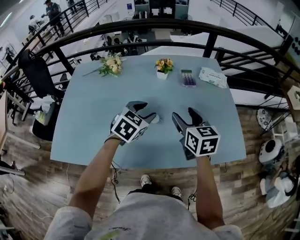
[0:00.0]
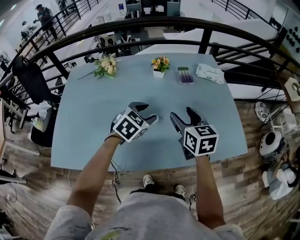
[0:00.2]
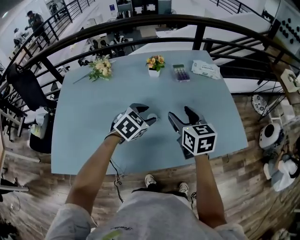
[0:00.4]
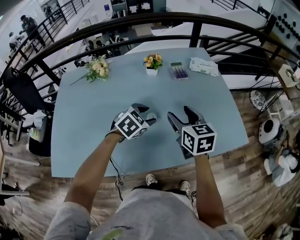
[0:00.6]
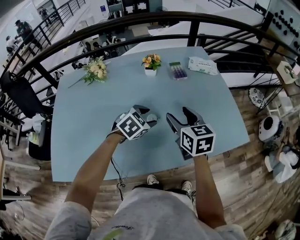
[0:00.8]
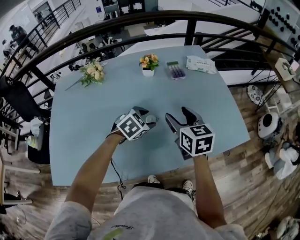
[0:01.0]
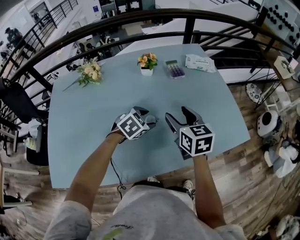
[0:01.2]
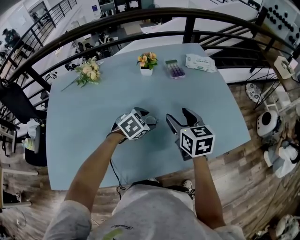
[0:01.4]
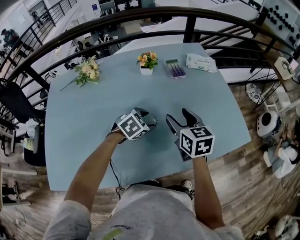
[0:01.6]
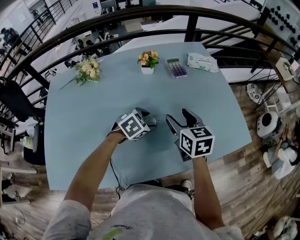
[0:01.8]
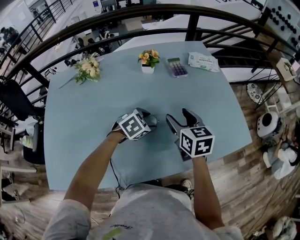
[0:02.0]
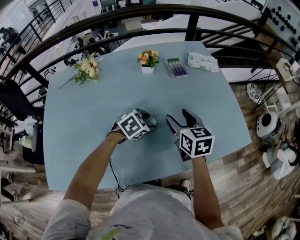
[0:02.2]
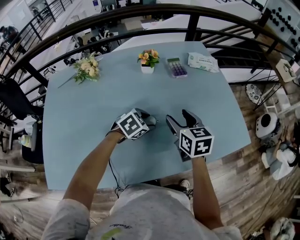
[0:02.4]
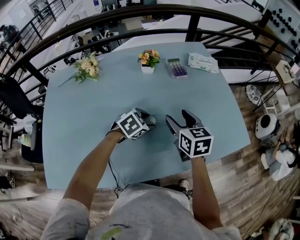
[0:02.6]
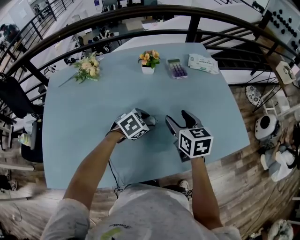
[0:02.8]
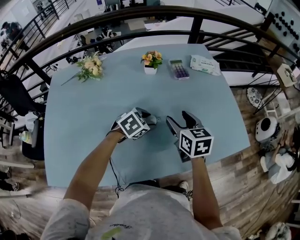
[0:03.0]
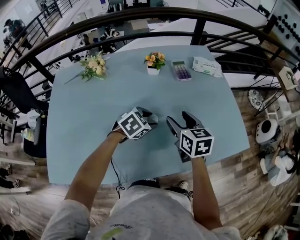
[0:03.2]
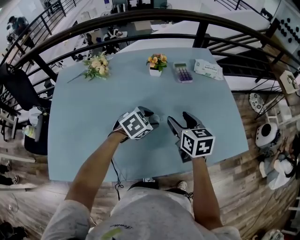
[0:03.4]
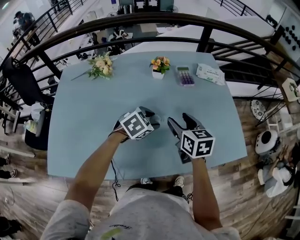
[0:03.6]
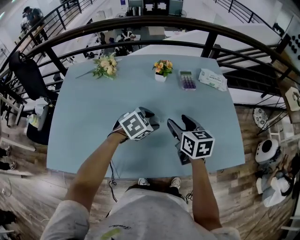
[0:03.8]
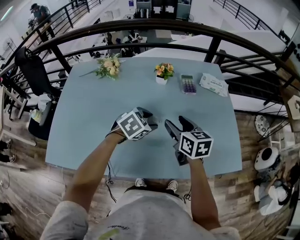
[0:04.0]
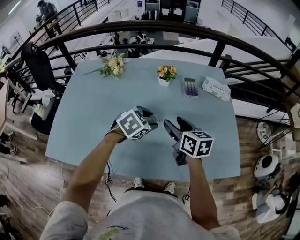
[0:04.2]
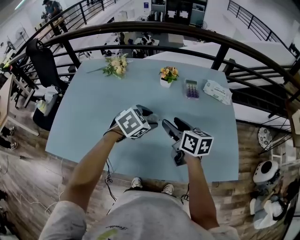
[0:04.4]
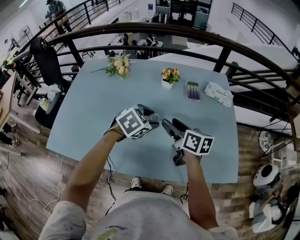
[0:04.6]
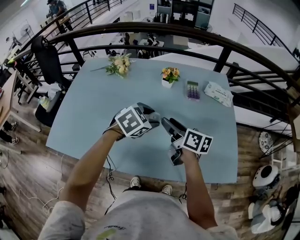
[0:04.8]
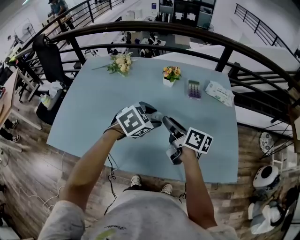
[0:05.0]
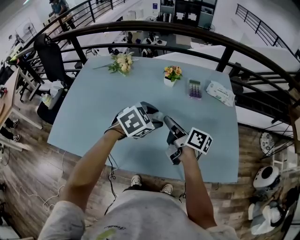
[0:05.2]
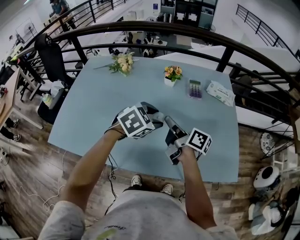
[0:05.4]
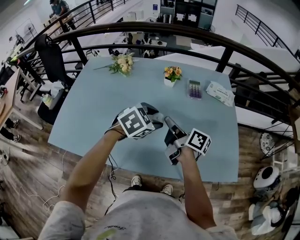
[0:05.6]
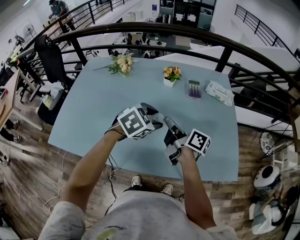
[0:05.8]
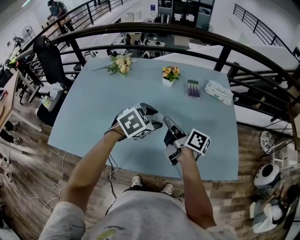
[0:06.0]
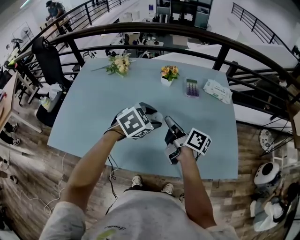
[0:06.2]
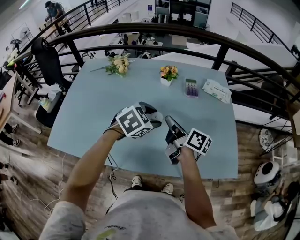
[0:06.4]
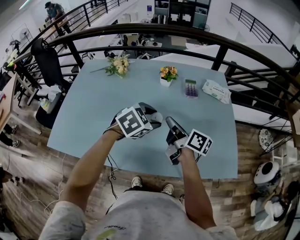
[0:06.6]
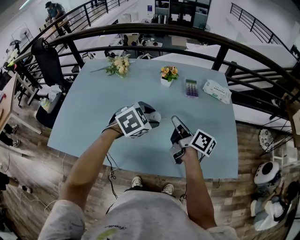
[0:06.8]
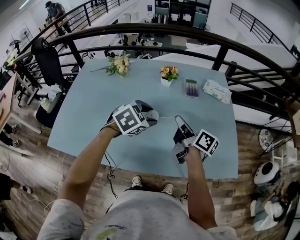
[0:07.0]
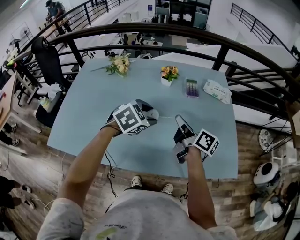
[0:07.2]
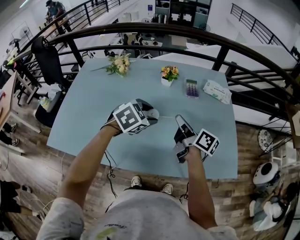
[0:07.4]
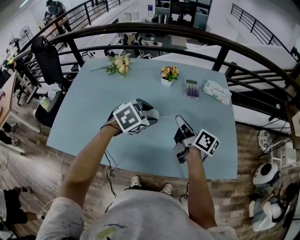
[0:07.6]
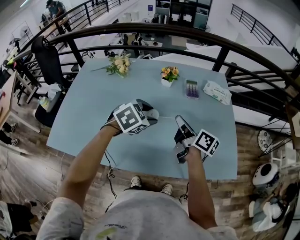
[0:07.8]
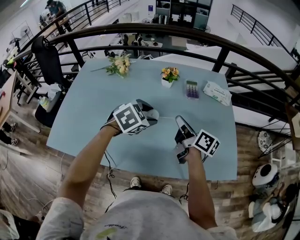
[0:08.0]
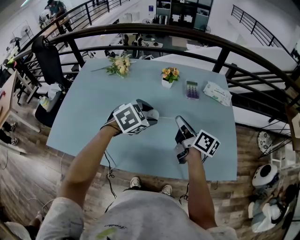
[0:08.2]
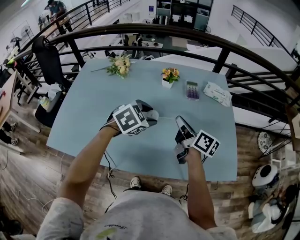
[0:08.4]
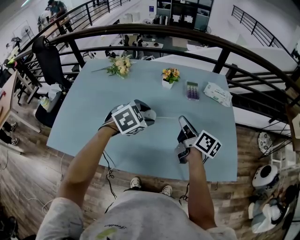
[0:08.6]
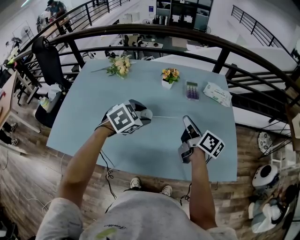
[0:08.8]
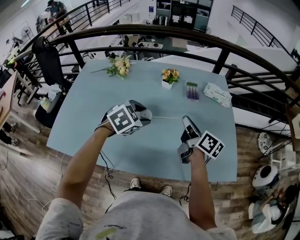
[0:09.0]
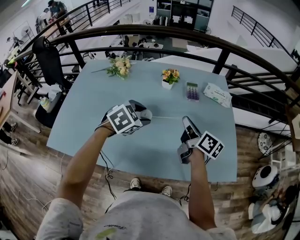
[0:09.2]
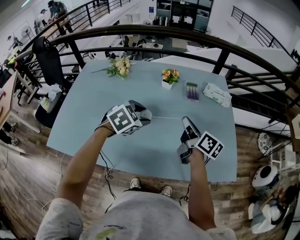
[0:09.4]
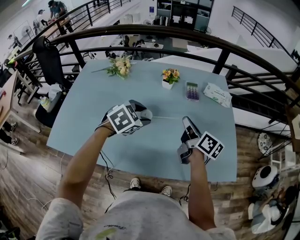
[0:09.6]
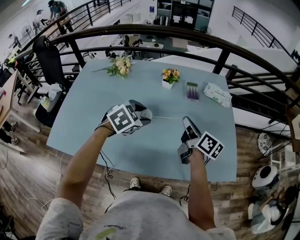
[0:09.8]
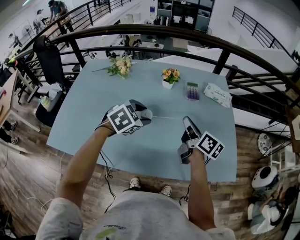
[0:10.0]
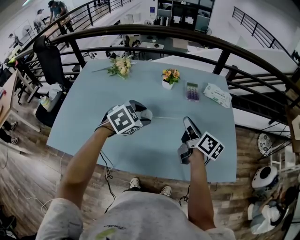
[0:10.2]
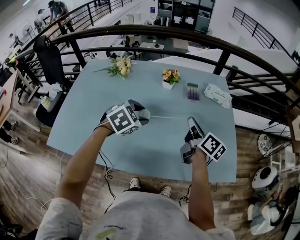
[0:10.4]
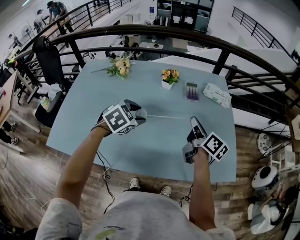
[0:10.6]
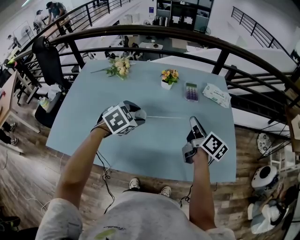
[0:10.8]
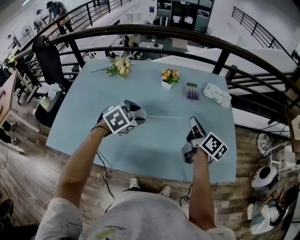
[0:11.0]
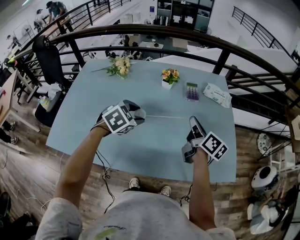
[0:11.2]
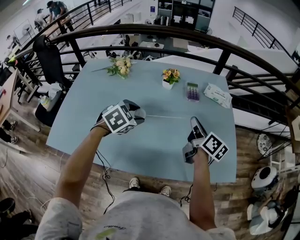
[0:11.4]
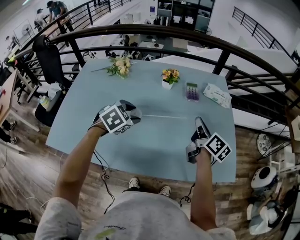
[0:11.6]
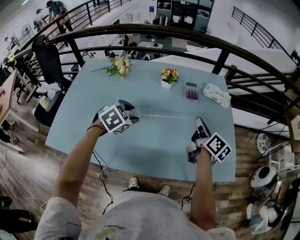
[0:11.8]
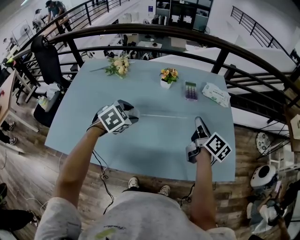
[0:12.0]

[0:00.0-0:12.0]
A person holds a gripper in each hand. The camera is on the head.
0:00.0 to 0:01.6: The right gripper shifts roughly 5 cm downward. Meanwhile the left gripper goes roughly 15 cm downward, and changes its angle by approximately 30 degrees.
0:01.6 to 0:03.0: The grippers move only a little.
0:03.0 to 0:04.4: The right gripper turns by about 30 degrees. The left gripper goes some 10 cm upward.
0:04.4 to 0:06.0: The left gripper moves approximately 5 cm; the right gripper turns by some 40 degrees, and closes.
0:06.0 to 0:07.6: The grippers make only small movements.
0:07.6 to 0:10.4: The grippers move only a little.
0:10.4 to 0:12.0: The grippers stay close to where they were, moving slightly.

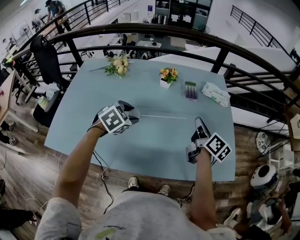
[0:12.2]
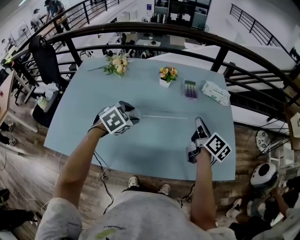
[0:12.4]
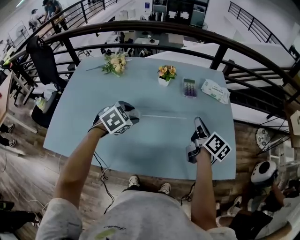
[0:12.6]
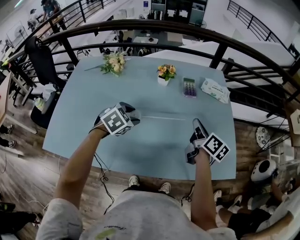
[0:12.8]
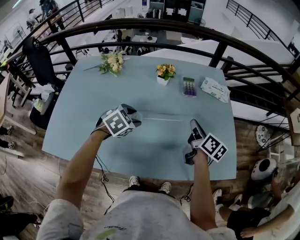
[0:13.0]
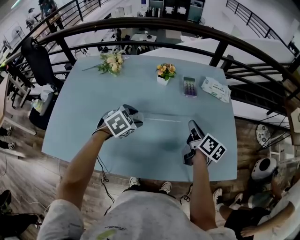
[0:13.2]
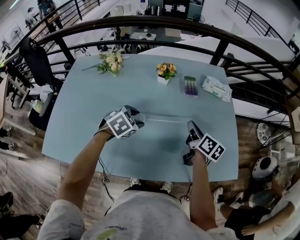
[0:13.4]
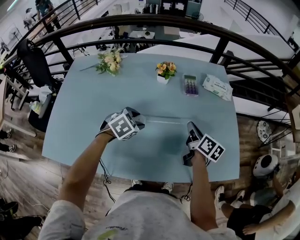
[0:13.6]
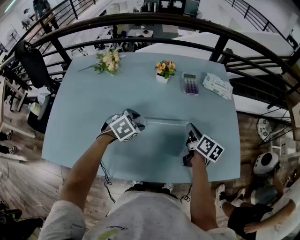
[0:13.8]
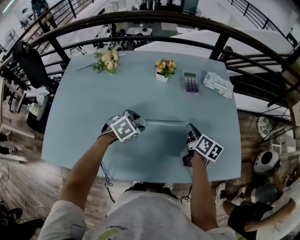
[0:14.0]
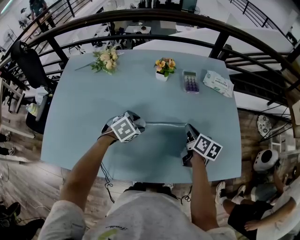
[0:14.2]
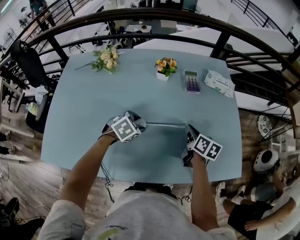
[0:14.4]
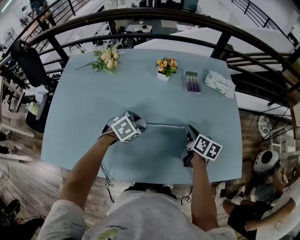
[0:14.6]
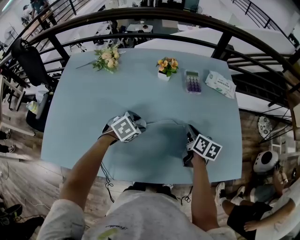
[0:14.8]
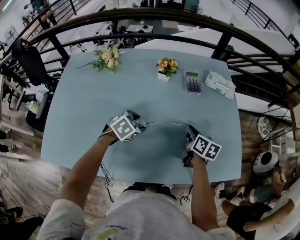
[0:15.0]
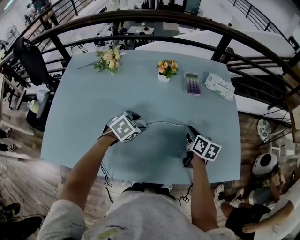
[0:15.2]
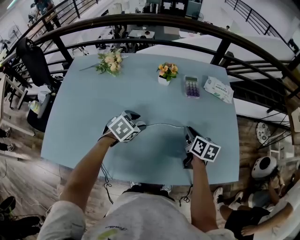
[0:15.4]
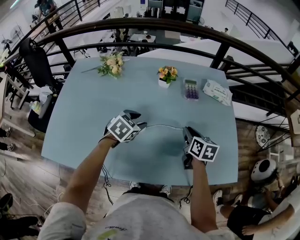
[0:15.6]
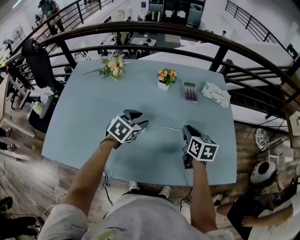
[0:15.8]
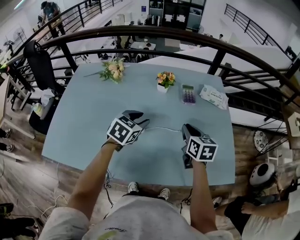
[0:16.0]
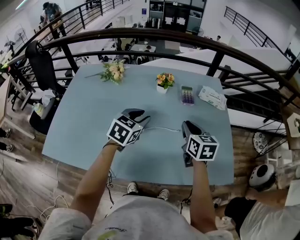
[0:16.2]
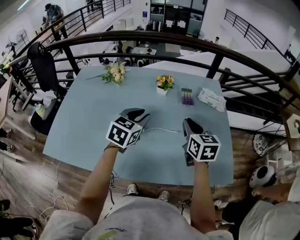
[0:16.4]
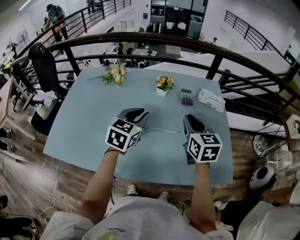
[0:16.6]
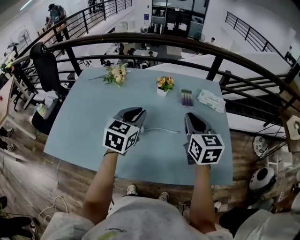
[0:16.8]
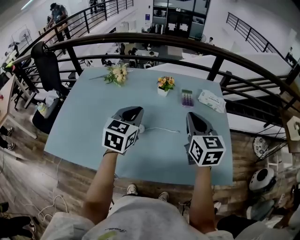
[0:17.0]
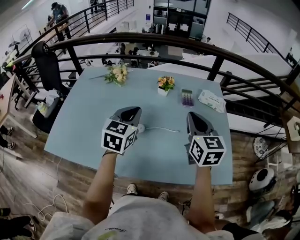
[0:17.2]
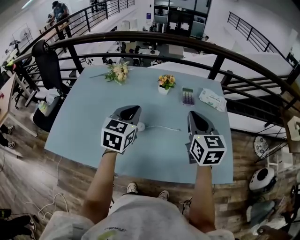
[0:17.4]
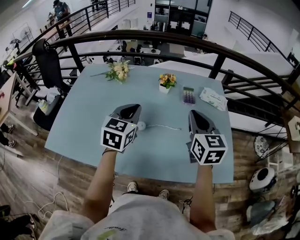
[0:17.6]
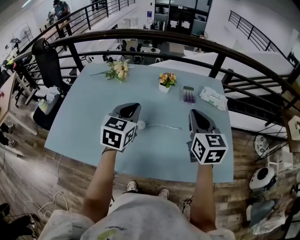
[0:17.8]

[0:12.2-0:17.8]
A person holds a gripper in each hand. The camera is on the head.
0:12.2 to 0:13.6: Both grippers travel together downward, about 5 cm.
0:13.6 to 0:15.0: The left gripper goes roughly 5 cm downward; the right gripper shifts by about 5 cm.
0:15.0 to 0:16.4: The grippers both shift upward by about 15 cm. The right gripper rotates approximately 30 degrees. The left gripper tips its fingers upward by some 30 degrees, and closes up.
0:16.4 to 0:17.8: The right gripper moves upward, approximately 5 cm. Meanwhile the left gripper ends up roughly 5 cm from where it was, and closes its fingers.

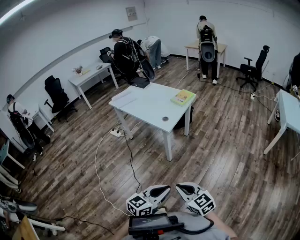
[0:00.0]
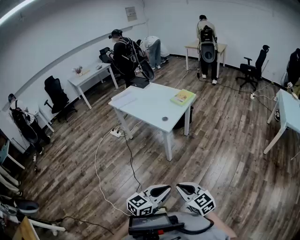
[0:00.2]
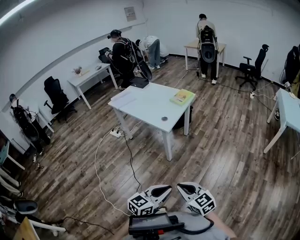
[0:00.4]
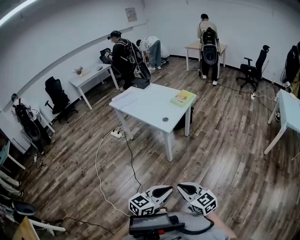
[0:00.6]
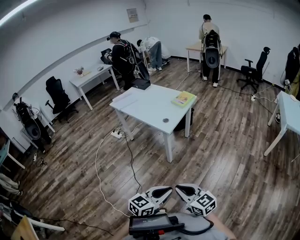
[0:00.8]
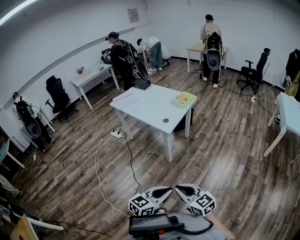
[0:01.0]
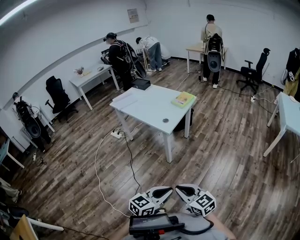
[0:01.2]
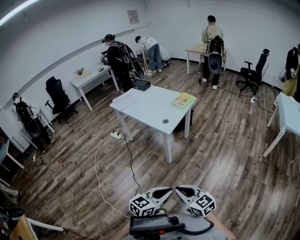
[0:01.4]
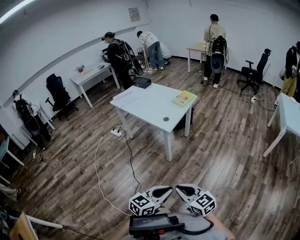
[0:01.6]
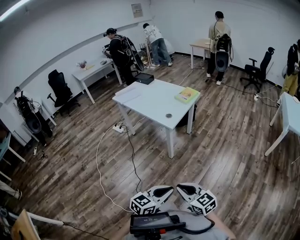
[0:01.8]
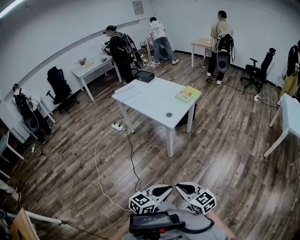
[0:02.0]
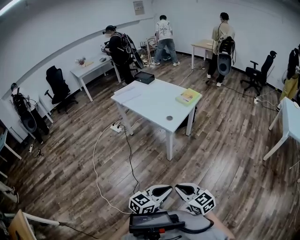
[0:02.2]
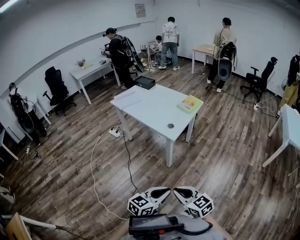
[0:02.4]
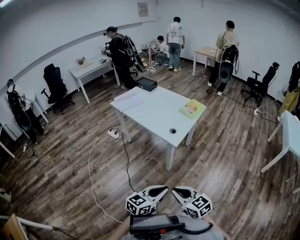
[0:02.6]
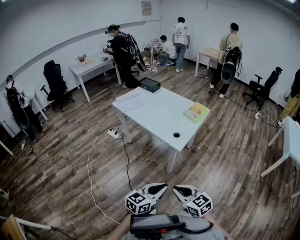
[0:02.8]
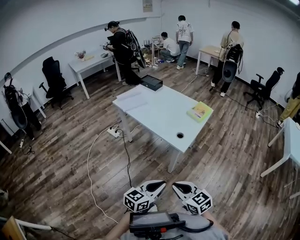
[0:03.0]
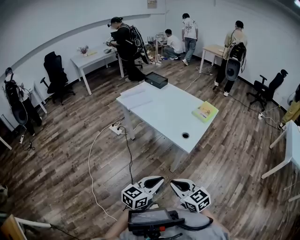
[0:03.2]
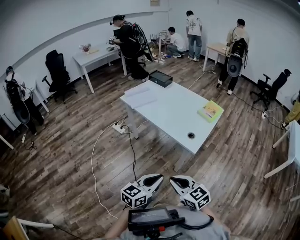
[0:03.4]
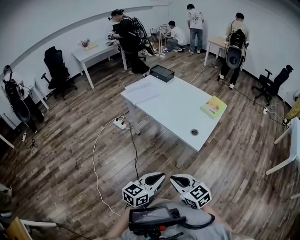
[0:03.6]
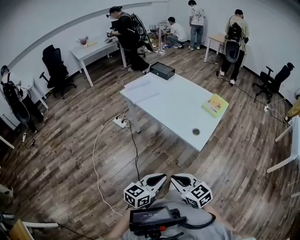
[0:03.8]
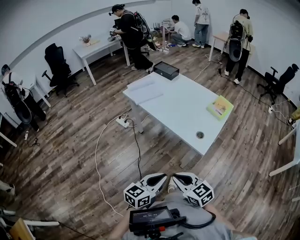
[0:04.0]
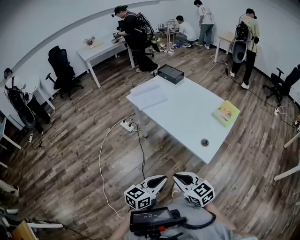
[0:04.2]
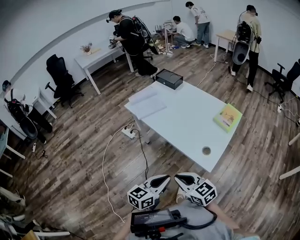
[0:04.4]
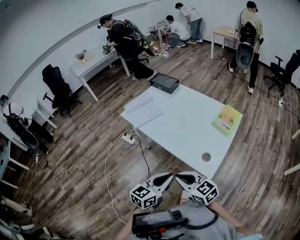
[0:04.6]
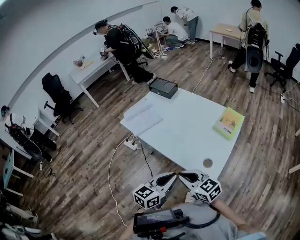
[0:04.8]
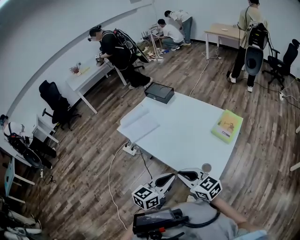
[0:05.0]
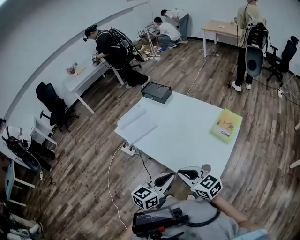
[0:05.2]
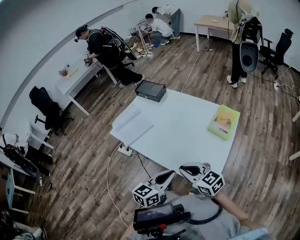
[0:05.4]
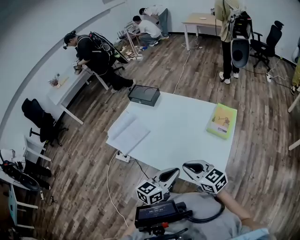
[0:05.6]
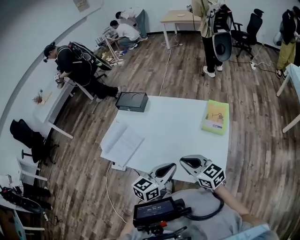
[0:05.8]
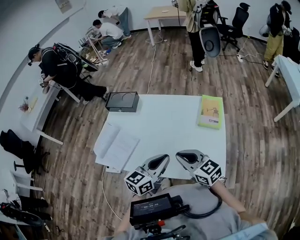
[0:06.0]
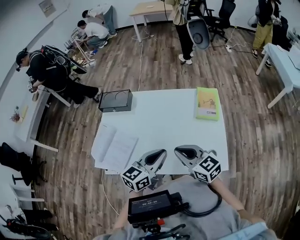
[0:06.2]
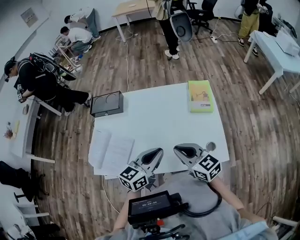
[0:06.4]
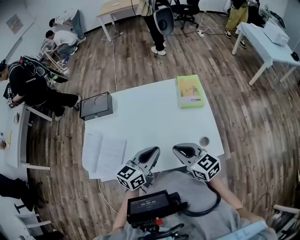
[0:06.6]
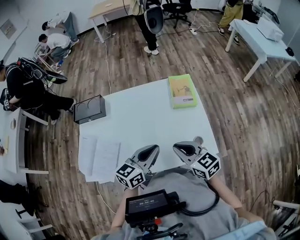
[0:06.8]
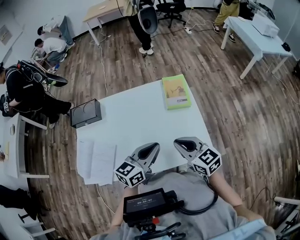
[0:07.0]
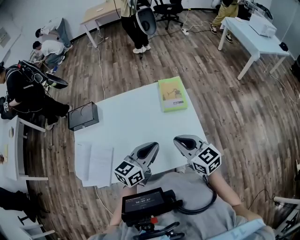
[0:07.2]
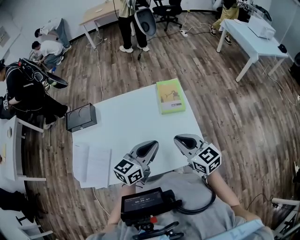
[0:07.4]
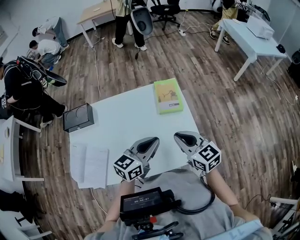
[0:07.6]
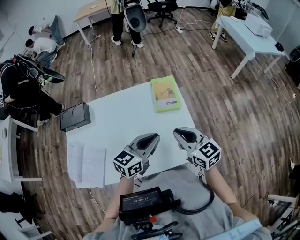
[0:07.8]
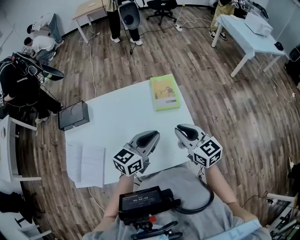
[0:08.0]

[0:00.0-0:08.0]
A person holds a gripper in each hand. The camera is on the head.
0:00.0 to 0:01.6: There are only small adjustments of the grippers.
0:01.6 to 0:03.2: Both grippers move forward and to the left, roughly 30 cm.
0:03.2 to 0:04.8: The two grippers go roughly 30 cm forward.
0:04.8 to 0:06.4: The left gripper changes place by roughly 25 cm, and swivels some 40 degrees, while the right gripper ends up some 20 cm from where it was, and turns by roughly 40 degrees.
0:06.4 to 0:08.0: The grippers both shift to the right and forward by approximately 15 cm. The right gripper changes its angle by roughly 20 degrees.
